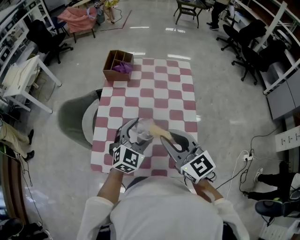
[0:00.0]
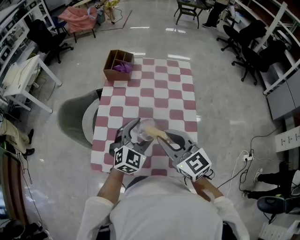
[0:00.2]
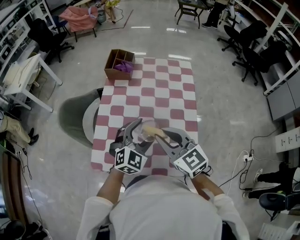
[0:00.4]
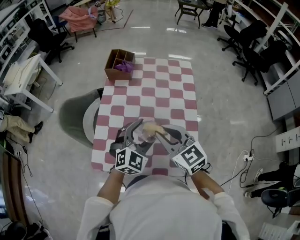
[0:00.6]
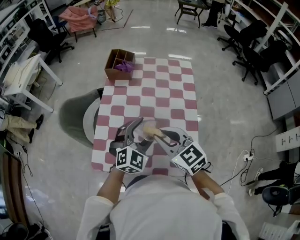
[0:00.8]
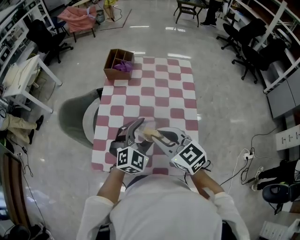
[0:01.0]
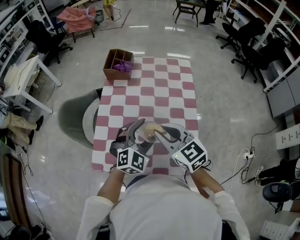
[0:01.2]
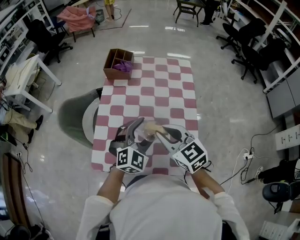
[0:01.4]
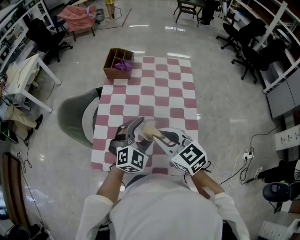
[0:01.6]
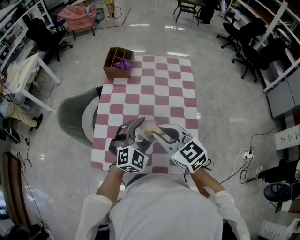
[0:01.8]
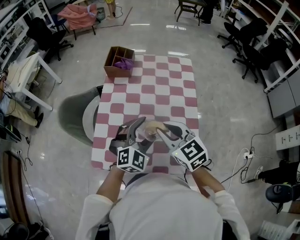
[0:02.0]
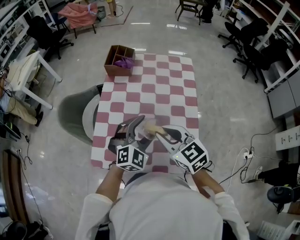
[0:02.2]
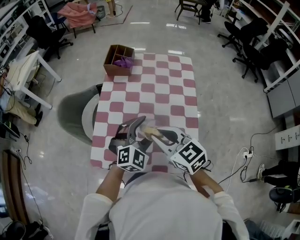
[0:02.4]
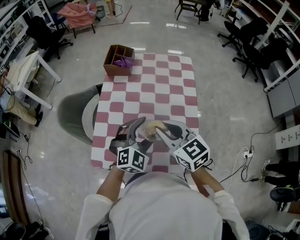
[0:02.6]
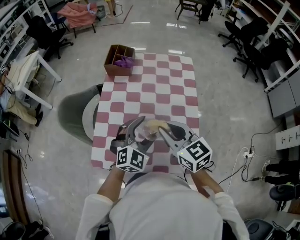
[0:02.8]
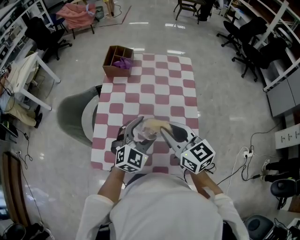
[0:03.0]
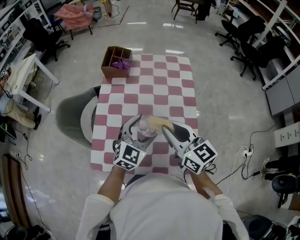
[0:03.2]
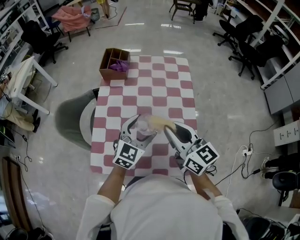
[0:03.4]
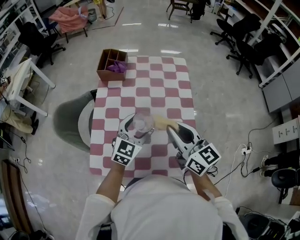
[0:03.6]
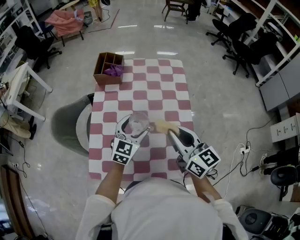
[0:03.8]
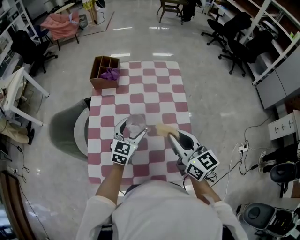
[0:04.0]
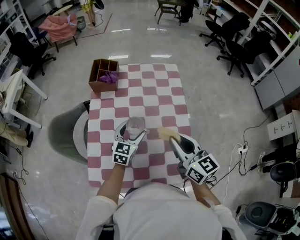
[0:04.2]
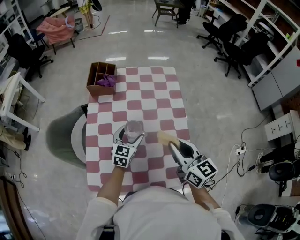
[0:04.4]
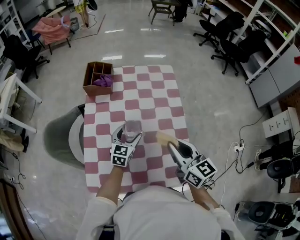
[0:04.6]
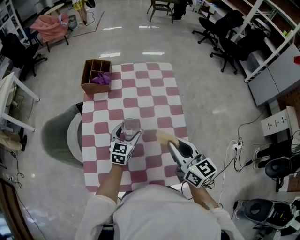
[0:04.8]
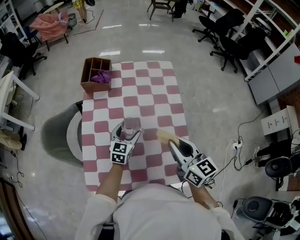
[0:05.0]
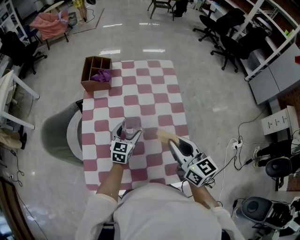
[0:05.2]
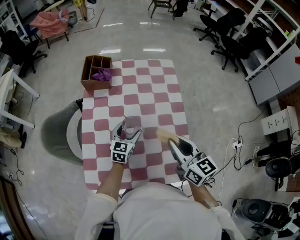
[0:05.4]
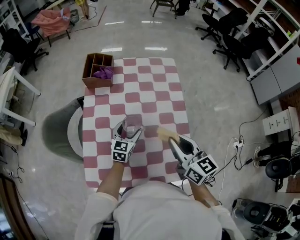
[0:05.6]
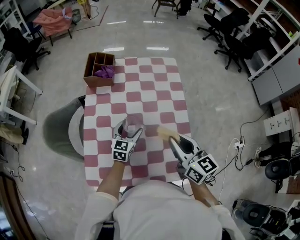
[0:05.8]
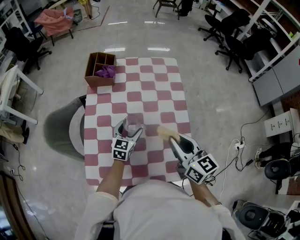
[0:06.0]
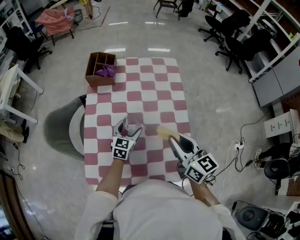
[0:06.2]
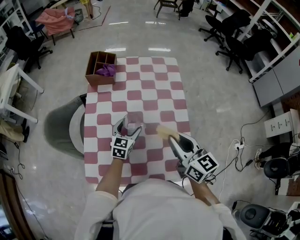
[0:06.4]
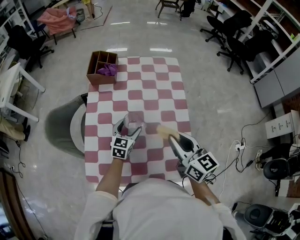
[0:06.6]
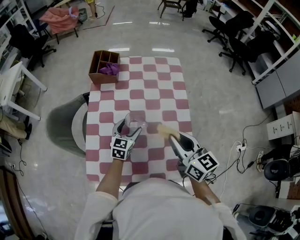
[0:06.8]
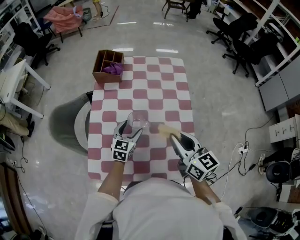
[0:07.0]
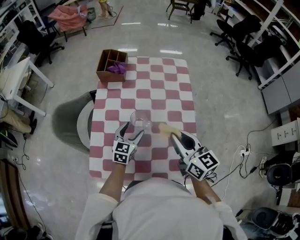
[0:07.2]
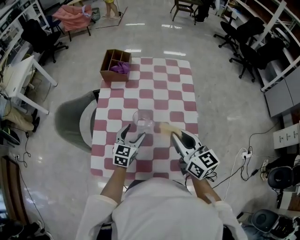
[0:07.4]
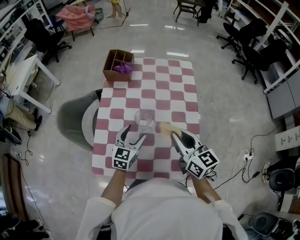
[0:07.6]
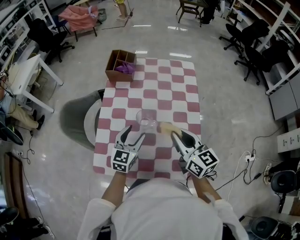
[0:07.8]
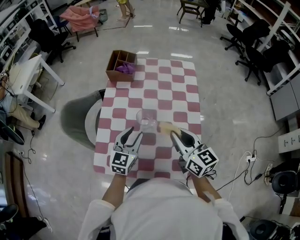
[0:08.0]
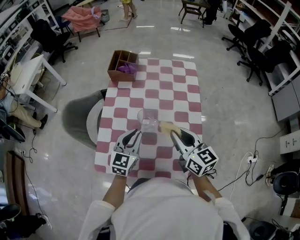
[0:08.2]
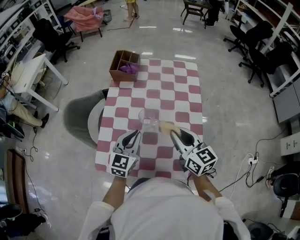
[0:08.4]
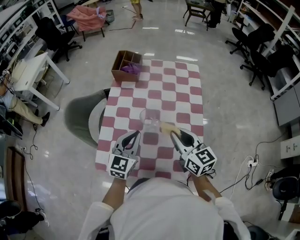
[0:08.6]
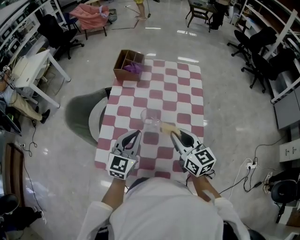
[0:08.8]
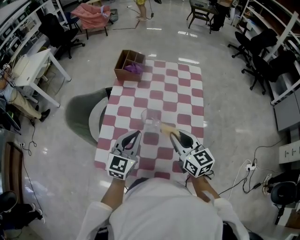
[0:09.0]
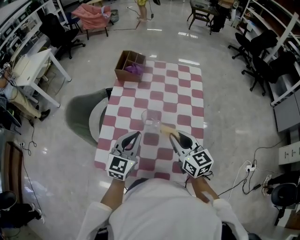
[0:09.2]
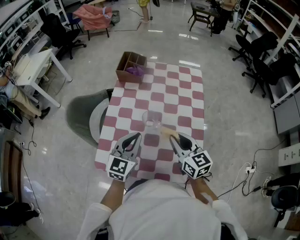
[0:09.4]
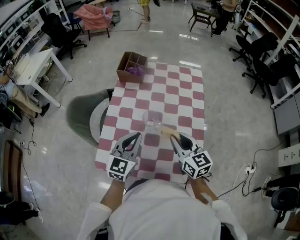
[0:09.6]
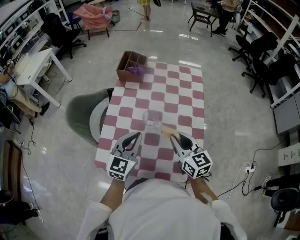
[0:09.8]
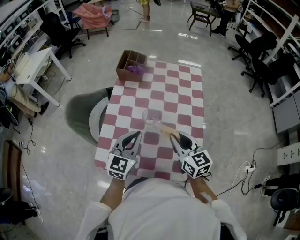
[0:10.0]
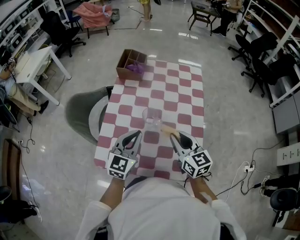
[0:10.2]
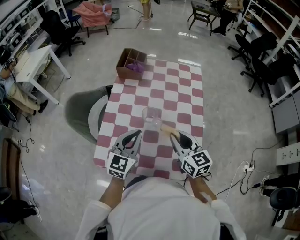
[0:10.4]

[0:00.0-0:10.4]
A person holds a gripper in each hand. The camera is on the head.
0:00.0 to 0:03.0: The grippers make only small movements.
0:03.0 to 0:04.4: The left gripper moves forward and downward, roughly 15 cm, and turns by some 30 degrees, while the right gripper shifts about 5 cm to the right.
0:04.4 to 0:06.0: There are only small adjustments of the grippers.
0:06.0 to 0:07.4: The left gripper shifts approximately 5 cm backward.
0:07.4 to 0:09.0: The left gripper goes some 15 cm upward and backward, and closes its fingers.
0:09.0 to 0:10.4: Both grippers stay about where they are.

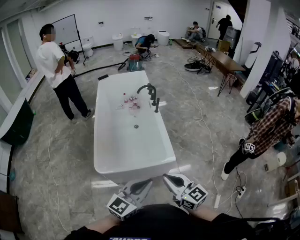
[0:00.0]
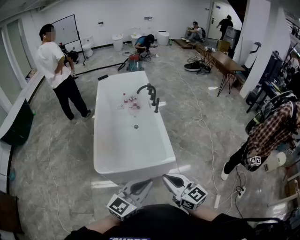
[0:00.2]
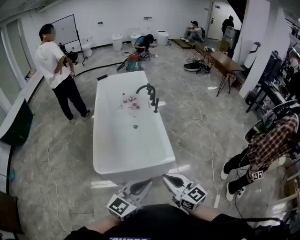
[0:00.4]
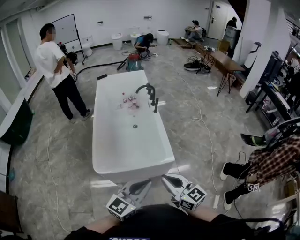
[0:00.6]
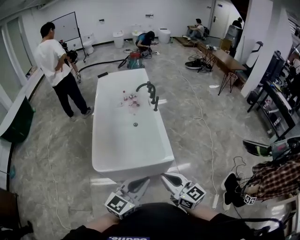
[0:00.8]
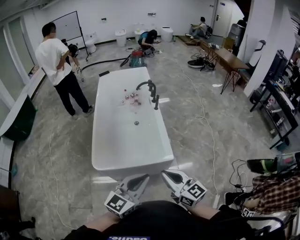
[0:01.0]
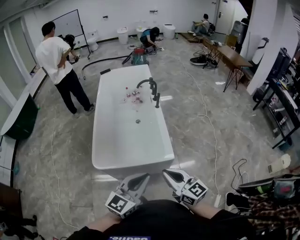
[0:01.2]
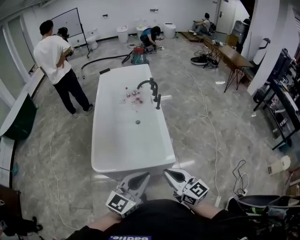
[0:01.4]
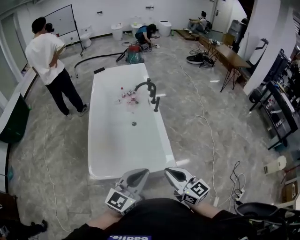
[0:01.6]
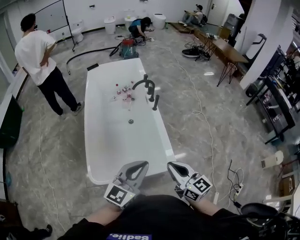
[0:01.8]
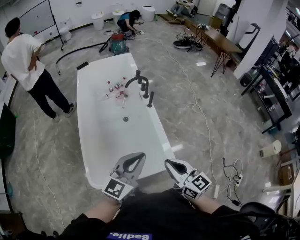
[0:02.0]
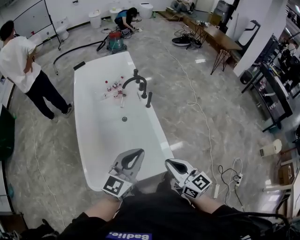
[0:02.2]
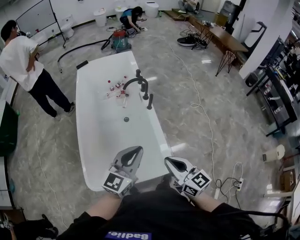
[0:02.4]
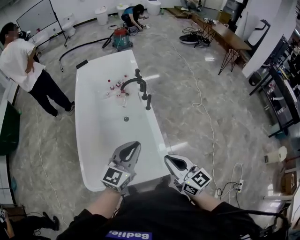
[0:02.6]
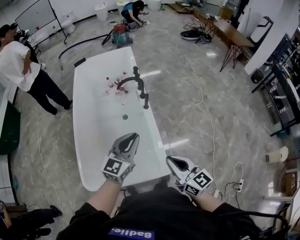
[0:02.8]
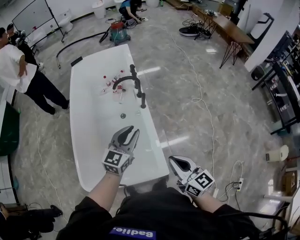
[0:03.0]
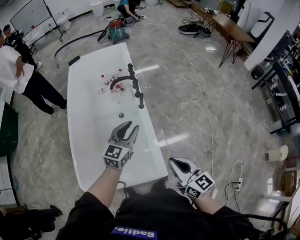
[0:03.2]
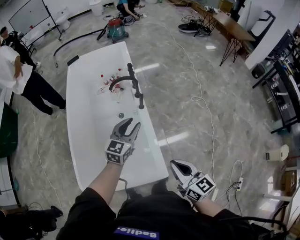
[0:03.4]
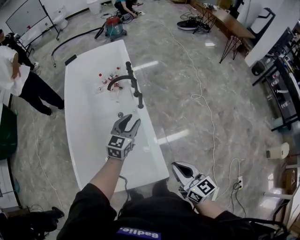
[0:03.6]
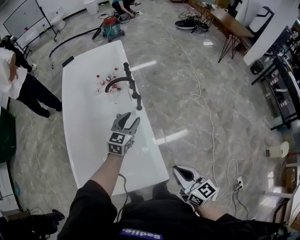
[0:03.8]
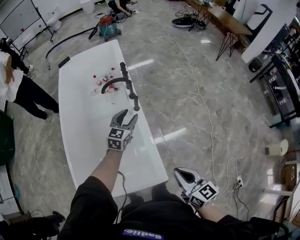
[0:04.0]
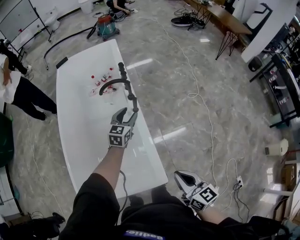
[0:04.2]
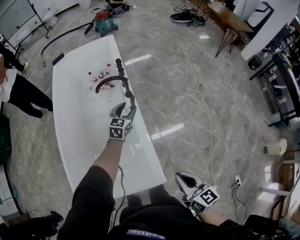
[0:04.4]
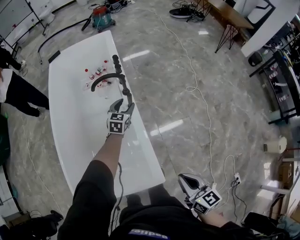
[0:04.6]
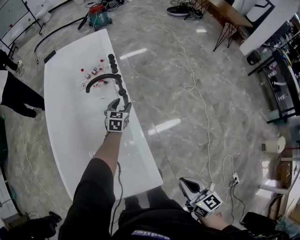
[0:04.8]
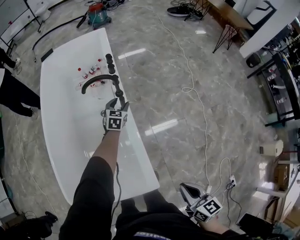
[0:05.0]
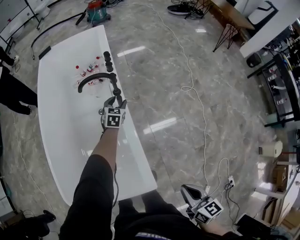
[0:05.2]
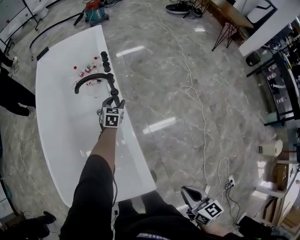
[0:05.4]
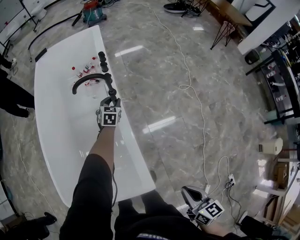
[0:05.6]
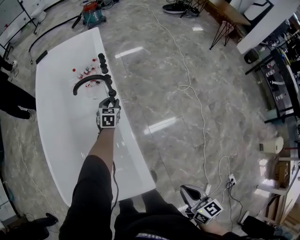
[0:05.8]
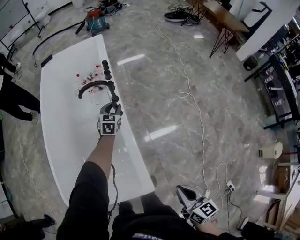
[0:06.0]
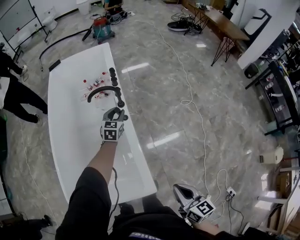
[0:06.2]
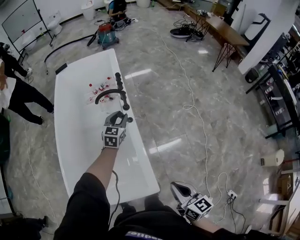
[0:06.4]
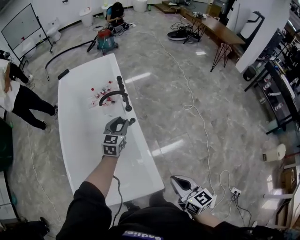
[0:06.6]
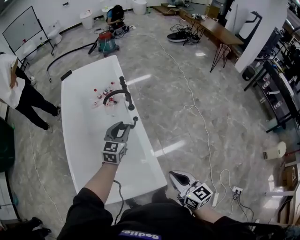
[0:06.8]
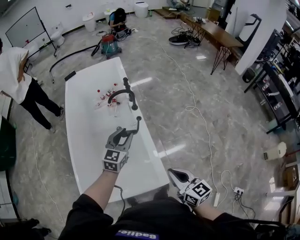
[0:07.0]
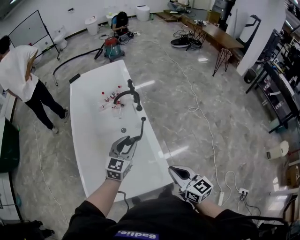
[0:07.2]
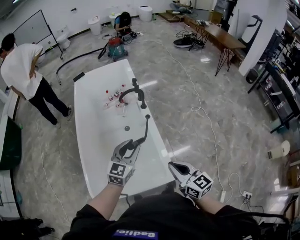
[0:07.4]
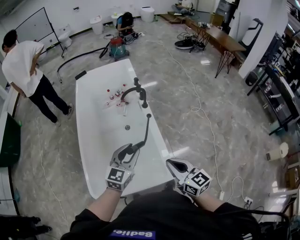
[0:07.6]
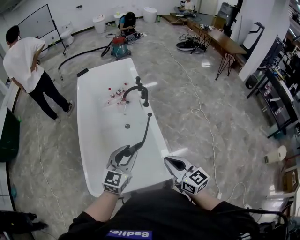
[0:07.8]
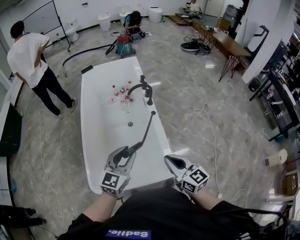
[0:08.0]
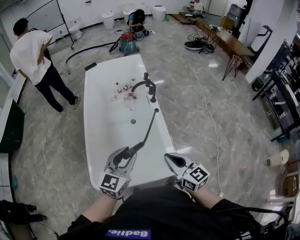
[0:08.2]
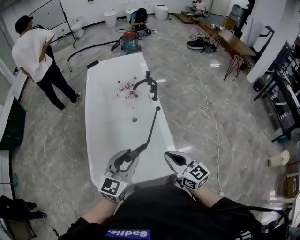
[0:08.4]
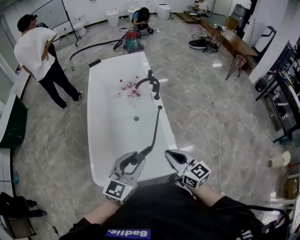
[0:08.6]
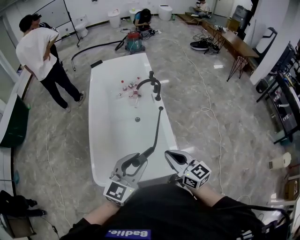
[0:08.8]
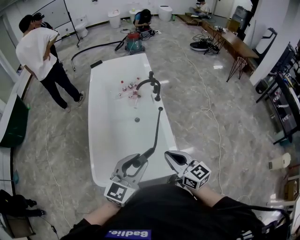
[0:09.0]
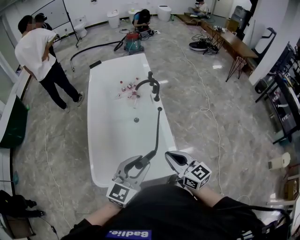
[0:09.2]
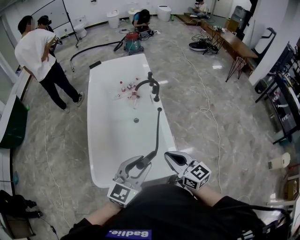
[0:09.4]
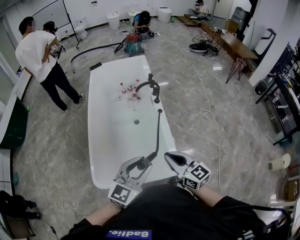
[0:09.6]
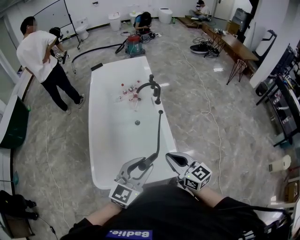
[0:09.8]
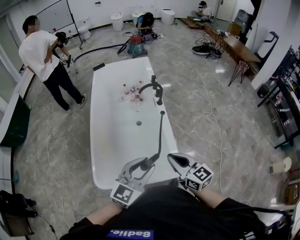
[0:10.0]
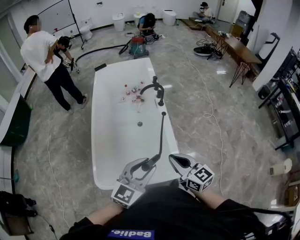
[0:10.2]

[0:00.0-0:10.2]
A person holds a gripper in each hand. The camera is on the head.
0:00.0 to 0:01.4: The two grippers go approximately 10 cm forward.
0:01.4 to 0:03.0: The two grippers go approximately 40 cm forward.
0:03.0 to 0:04.4: The right gripper travels downward and to the right by about 10 cm, while the left gripper heads forward and downward, covering about 30 cm, and opens its fingers.
0:04.4 to 0:05.8: The right gripper shifts approximately 10 cm to the right and downward. The left gripper is displaced downward and forward by about 15 cm.
0:05.8 to 0:07.2: The left gripper is displaced backward and upward by roughly 50 cm, and turns by about 30 degrees, while the right gripper travels to the left and upward by about 25 cm, and rotates roughly 20 degrees.
0:07.2 to 0:08.8: The right gripper travels to the left by roughly 10 cm, while the left gripper is displaced backward and upward by roughly 25 cm.
0:08.8 to 0:10.2: The grippers move only a little.

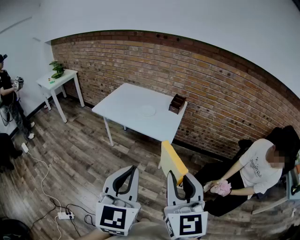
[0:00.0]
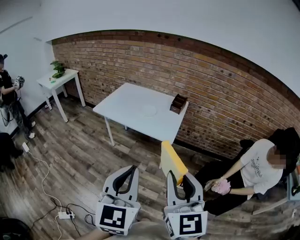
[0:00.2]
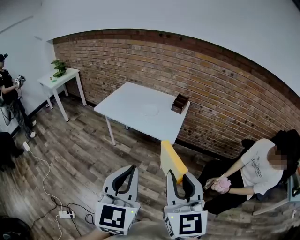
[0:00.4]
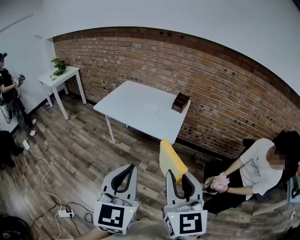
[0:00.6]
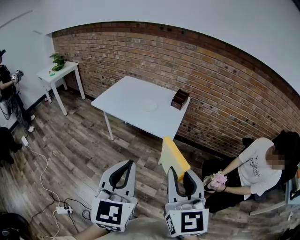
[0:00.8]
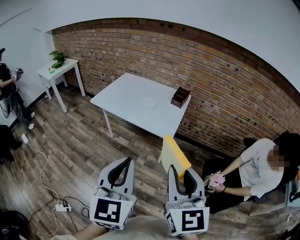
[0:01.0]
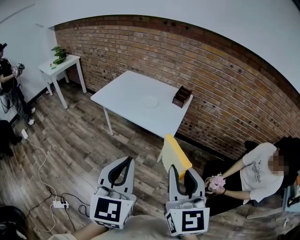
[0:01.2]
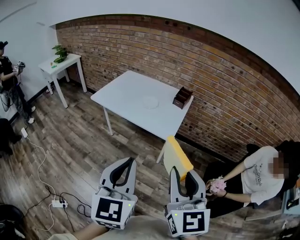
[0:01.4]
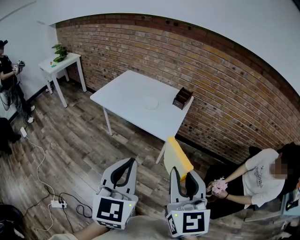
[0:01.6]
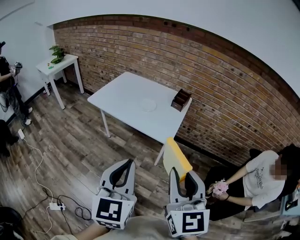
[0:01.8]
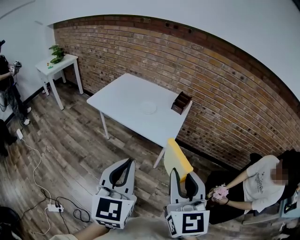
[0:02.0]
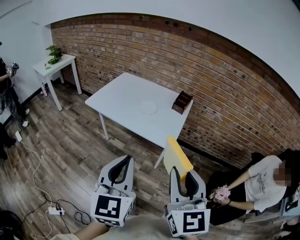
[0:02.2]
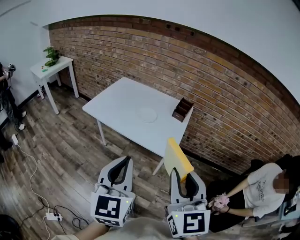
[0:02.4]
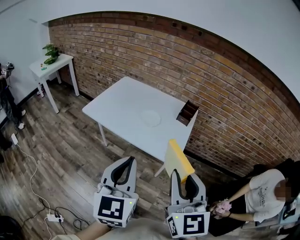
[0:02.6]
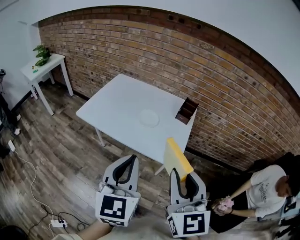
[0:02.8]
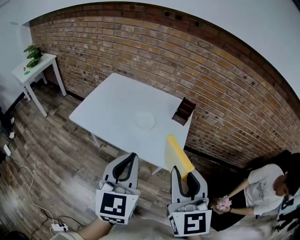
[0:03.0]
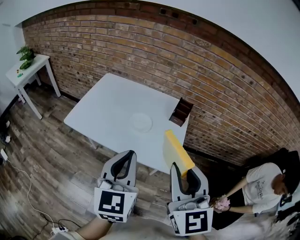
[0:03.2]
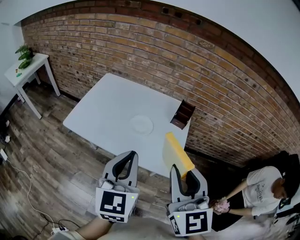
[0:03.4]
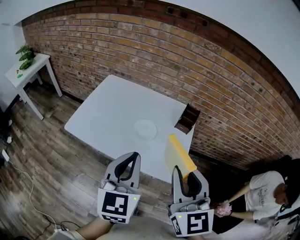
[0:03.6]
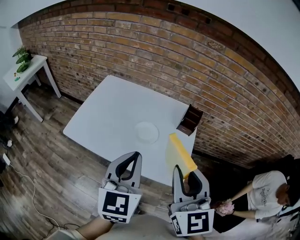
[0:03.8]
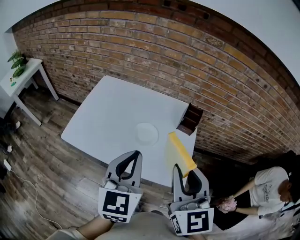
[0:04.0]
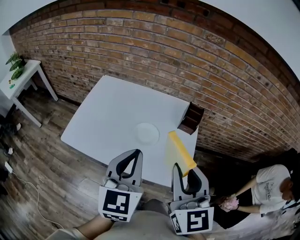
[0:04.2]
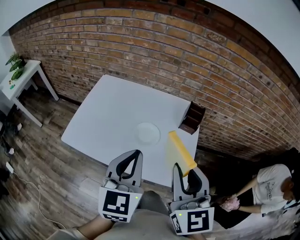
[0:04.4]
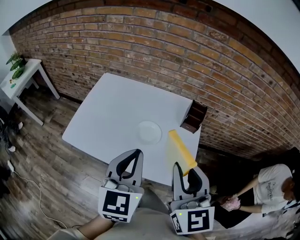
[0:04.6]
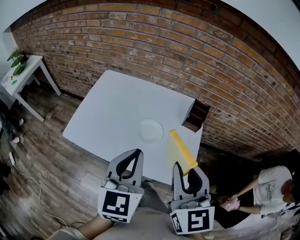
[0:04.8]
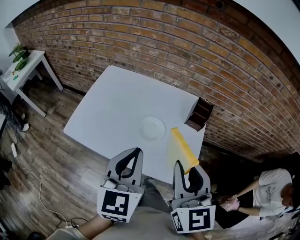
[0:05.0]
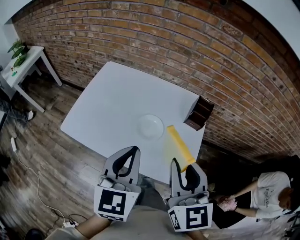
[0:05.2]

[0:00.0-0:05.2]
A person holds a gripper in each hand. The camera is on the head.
0:00.0 to 0:01.8: Both grippers move forward, approximately 10 cm.
0:01.8 to 0:03.4: The two grippers go about 30 cm forward.
0:03.4 to 0:05.2: The left gripper is displaced forward by roughly 15 cm, while the right gripper shifts about 15 cm forward and downward.
